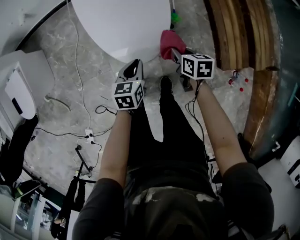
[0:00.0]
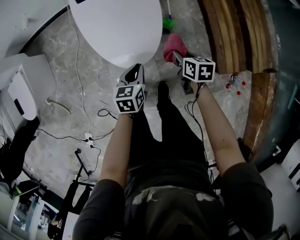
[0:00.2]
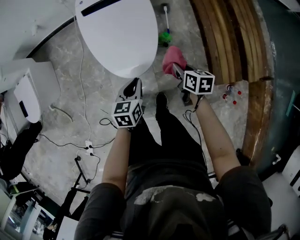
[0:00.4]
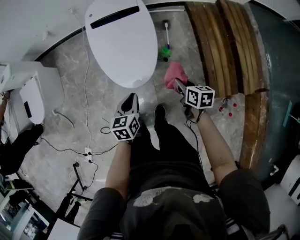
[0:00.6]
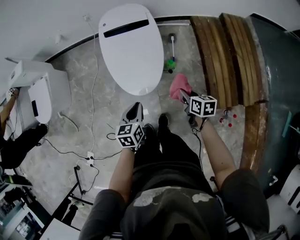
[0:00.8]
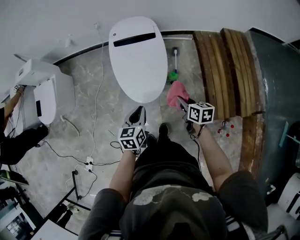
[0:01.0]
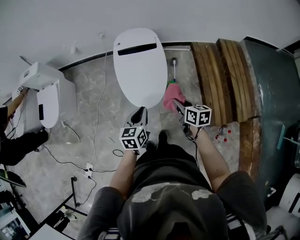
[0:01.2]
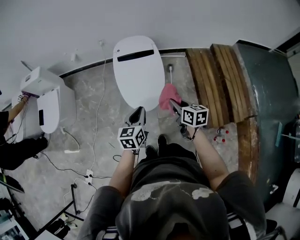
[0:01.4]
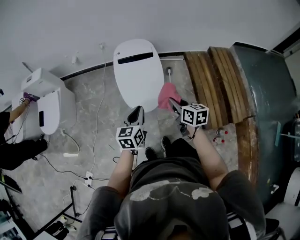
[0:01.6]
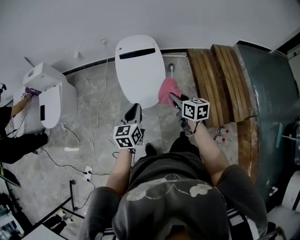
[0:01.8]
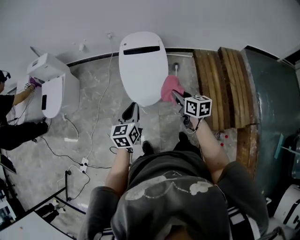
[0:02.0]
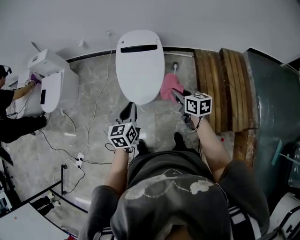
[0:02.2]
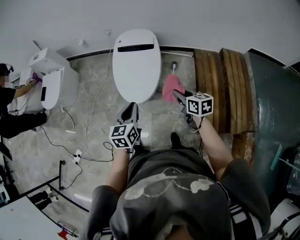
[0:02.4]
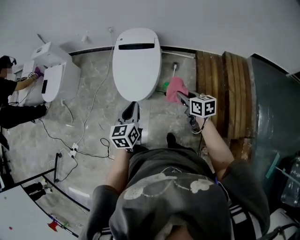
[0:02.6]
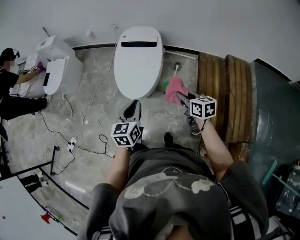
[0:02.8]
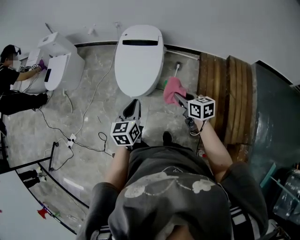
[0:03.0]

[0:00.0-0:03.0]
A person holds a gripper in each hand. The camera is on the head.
0:00.0 to 0:01.6: The grippers both shift upward by about 30 cm. The left gripper changes its angle by approximately 30 degrees. The right gripper rotates some 30 degrees.
0:01.6 to 0:03.0: The right gripper goes about 15 cm to the right, and rotates approximately 20 degrees. The left gripper travels to the right and backward by approximately 15 cm, and turns by approximately 20 degrees.

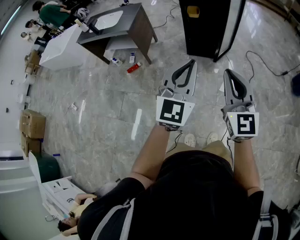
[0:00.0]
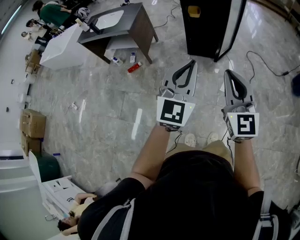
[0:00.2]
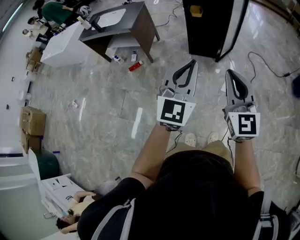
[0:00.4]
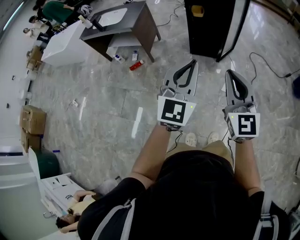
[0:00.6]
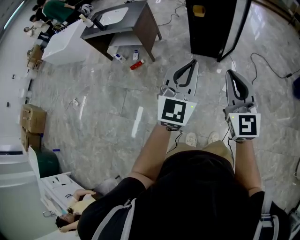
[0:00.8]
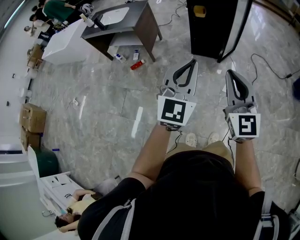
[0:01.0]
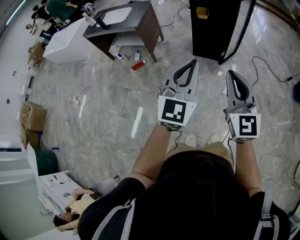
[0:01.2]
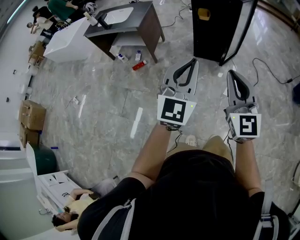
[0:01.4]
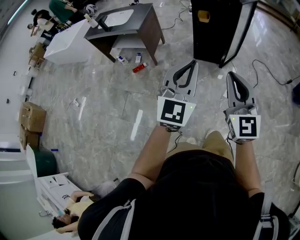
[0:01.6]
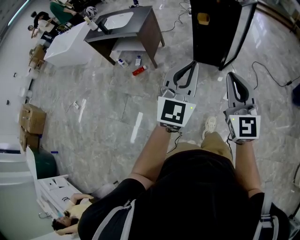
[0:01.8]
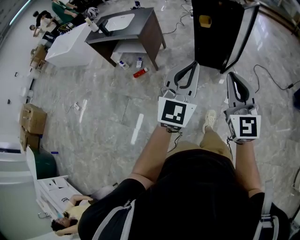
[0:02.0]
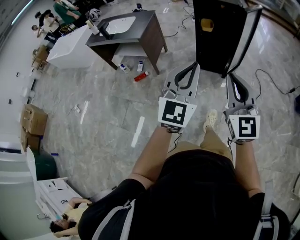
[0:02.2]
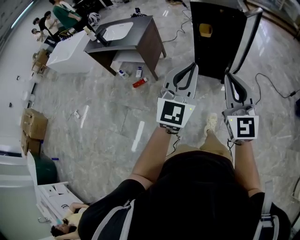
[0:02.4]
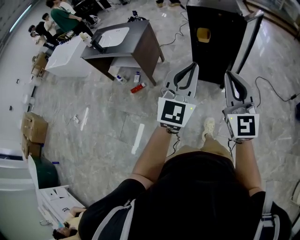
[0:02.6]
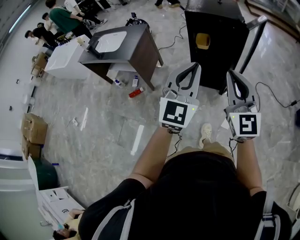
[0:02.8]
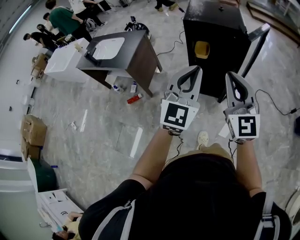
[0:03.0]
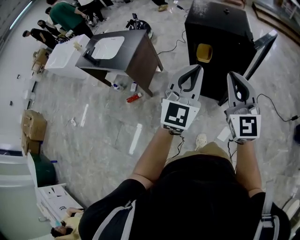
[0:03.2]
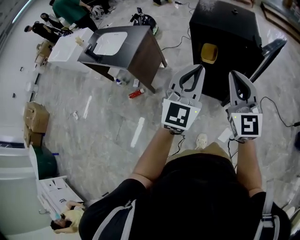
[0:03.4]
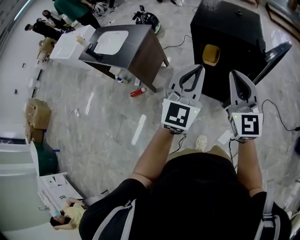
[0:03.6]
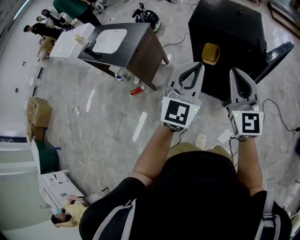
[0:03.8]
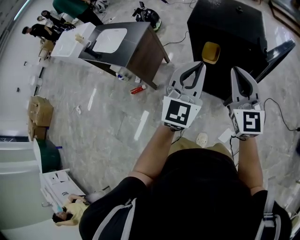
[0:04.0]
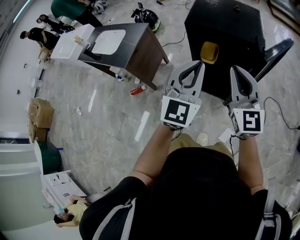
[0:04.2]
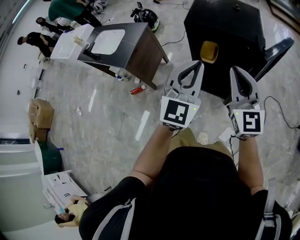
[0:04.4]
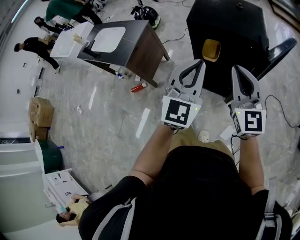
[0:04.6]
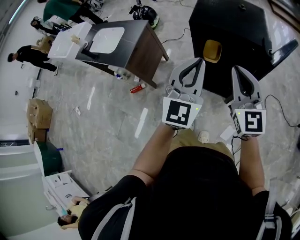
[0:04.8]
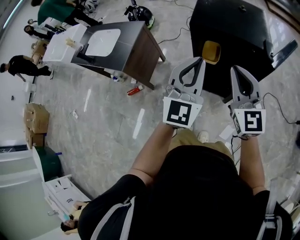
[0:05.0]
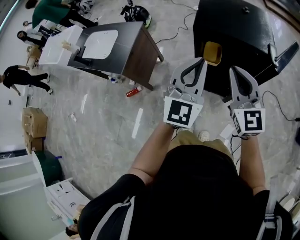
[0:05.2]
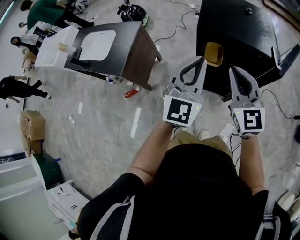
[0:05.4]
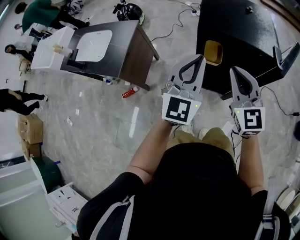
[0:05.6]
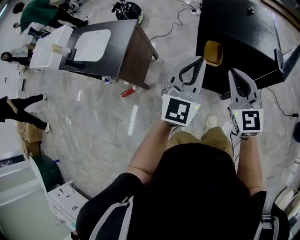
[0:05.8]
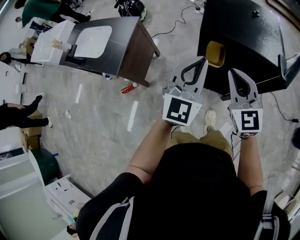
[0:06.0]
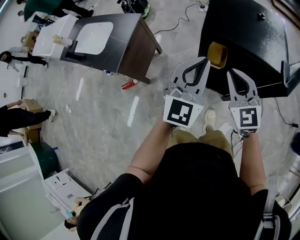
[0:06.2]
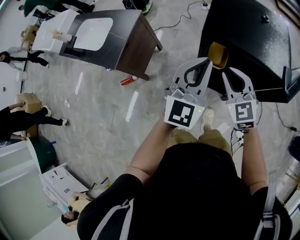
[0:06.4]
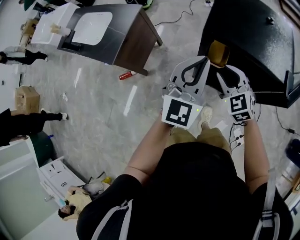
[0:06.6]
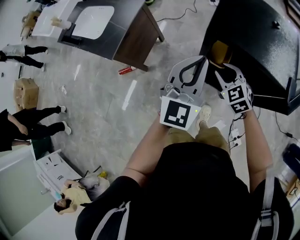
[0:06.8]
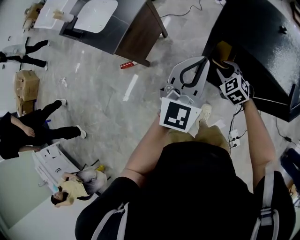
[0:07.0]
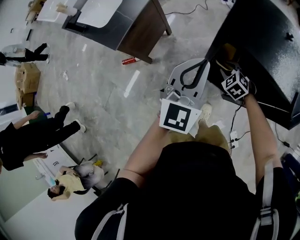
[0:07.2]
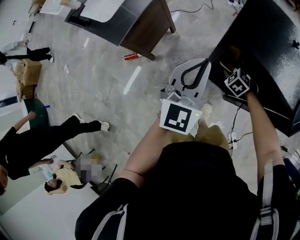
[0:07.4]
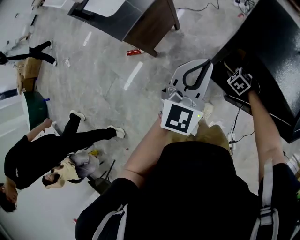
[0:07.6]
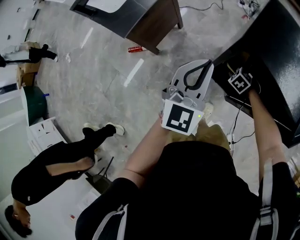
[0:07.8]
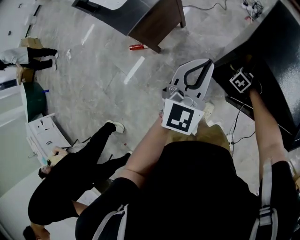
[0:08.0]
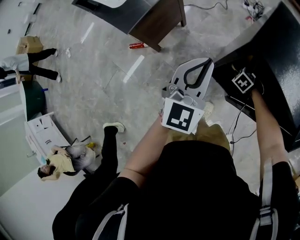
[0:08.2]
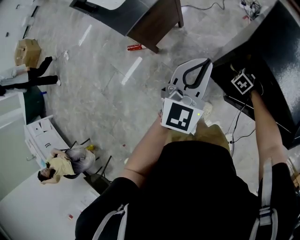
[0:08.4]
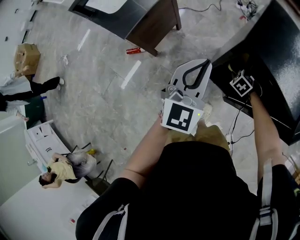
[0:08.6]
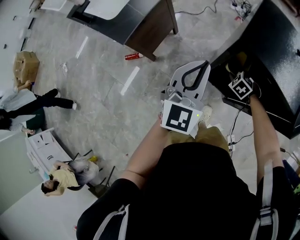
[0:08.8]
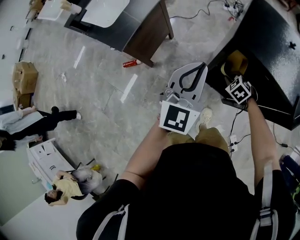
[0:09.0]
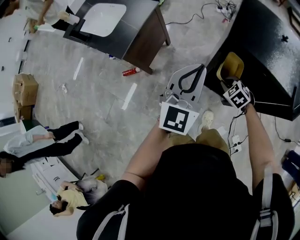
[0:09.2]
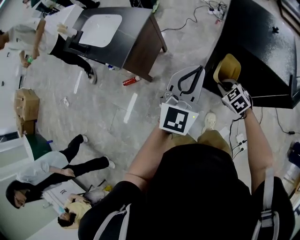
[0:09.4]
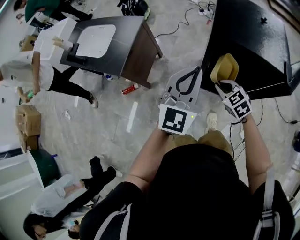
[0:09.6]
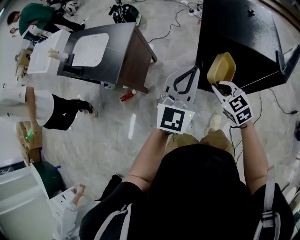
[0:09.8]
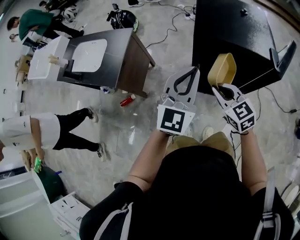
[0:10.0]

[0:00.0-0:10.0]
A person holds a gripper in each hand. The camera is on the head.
0:00.0 to 0:01.4: The grippers move only a little.
0:01.4 to 0:02.8: The two grippers go some 30 cm forward.
0:02.8 to 0:04.2: Both grippers move forward, some 30 cm.
0:04.2 to 0:05.8: The left gripper moves forward and to the left, roughly 20 cm. Meanwhile the right gripper moves to the left, forward and downward, approximately 15 cm.
0:05.8 to 0:07.2: The right gripper moves downward and forward, roughly 35 cm, tips its fingers downward by approximately 50 degrees, and opens up. The left gripper is displaced forward and downward by some 10 cm.
0:07.2 to 0:08.6: The right gripper is displaced downward by about 10 cm, and closes up. The left gripper shifts by approximately 5 cm.
0:08.6 to 0:10.0: The right gripper travels upward by approximately 25 cm, and tilts its fingers about 50 degrees upward. The left gripper moves about 15 cm, and turns by some 30 degrees.

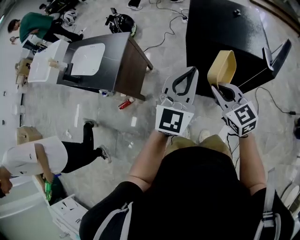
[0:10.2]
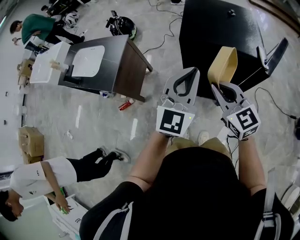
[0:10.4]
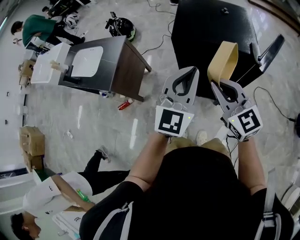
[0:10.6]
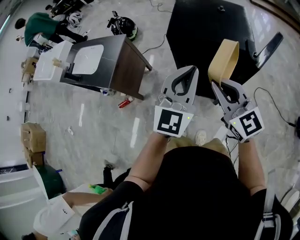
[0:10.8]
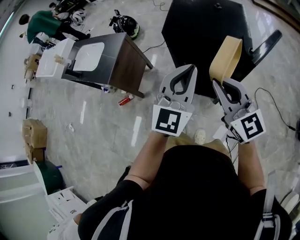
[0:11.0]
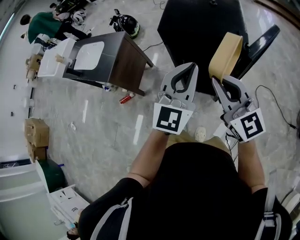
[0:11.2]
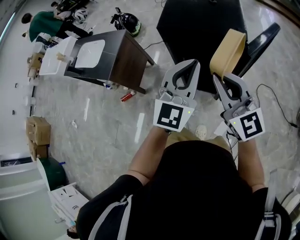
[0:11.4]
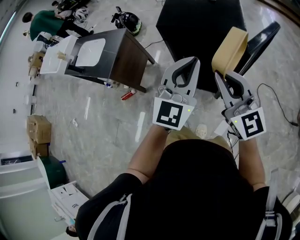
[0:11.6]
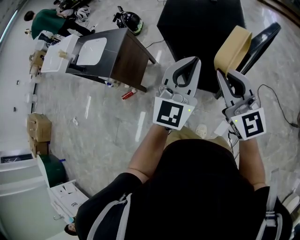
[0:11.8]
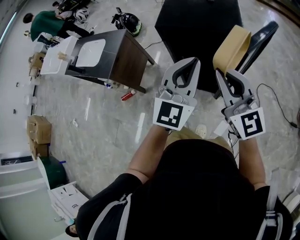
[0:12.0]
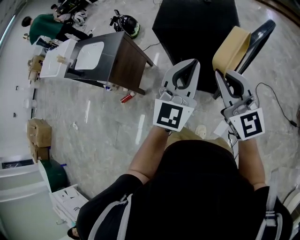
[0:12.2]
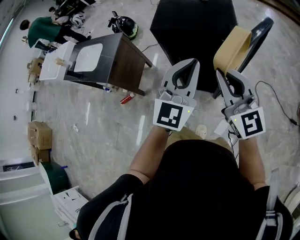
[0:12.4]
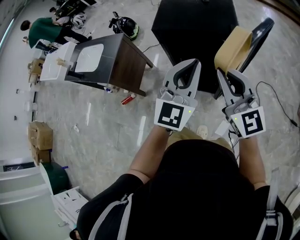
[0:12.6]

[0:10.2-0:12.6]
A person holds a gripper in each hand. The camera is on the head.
0:10.2 to 0:11.4: The right gripper moves to the right, upward and backward, about 20 cm, and turns by approximately 20 degrees. The left gripper moves to the right and backward, some 20 cm.
0:11.4 to 0:12.6: The grippers make only small movements.

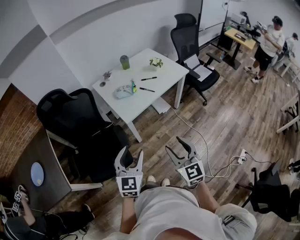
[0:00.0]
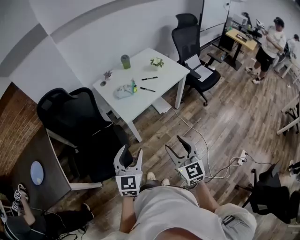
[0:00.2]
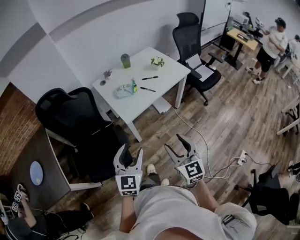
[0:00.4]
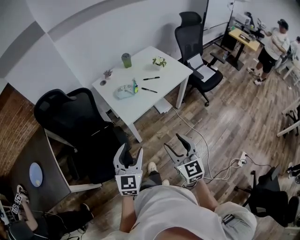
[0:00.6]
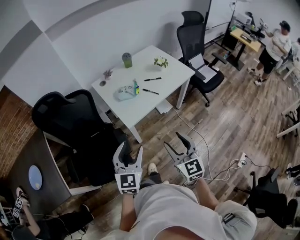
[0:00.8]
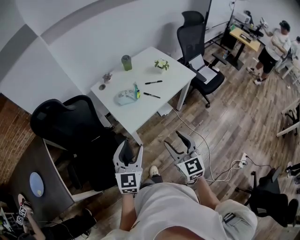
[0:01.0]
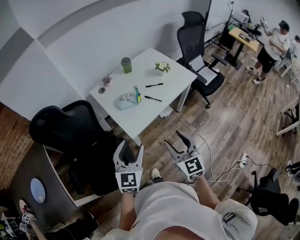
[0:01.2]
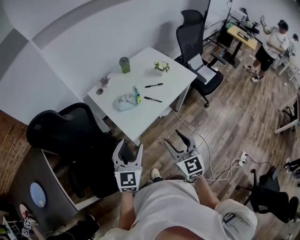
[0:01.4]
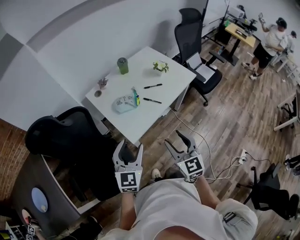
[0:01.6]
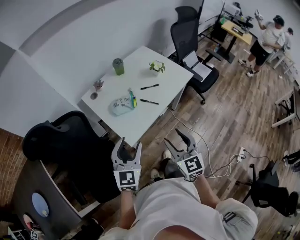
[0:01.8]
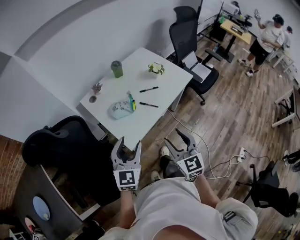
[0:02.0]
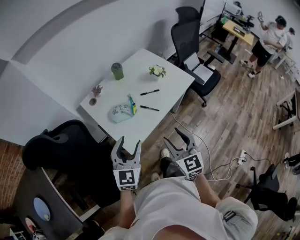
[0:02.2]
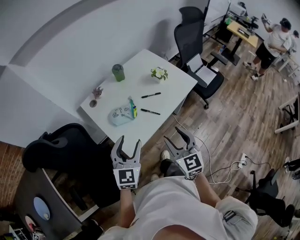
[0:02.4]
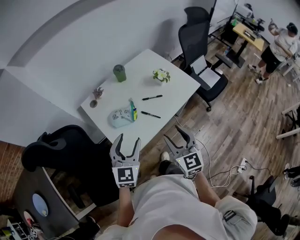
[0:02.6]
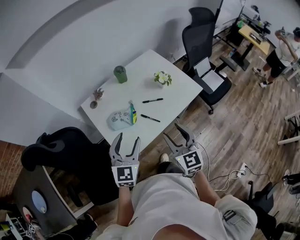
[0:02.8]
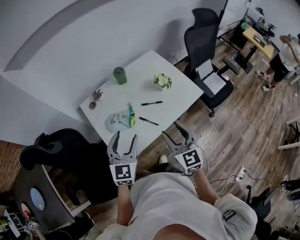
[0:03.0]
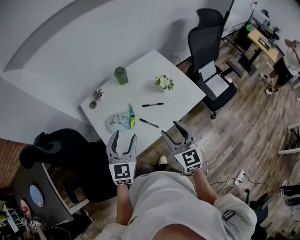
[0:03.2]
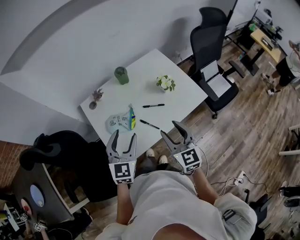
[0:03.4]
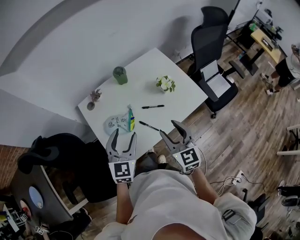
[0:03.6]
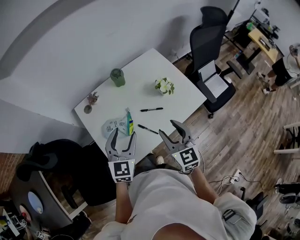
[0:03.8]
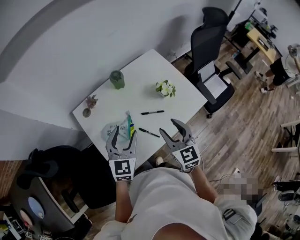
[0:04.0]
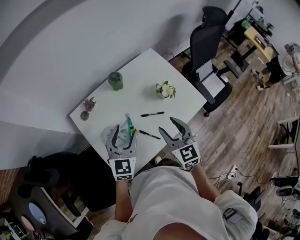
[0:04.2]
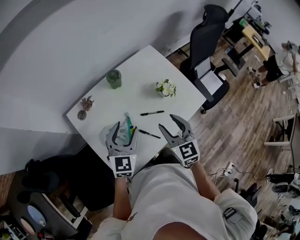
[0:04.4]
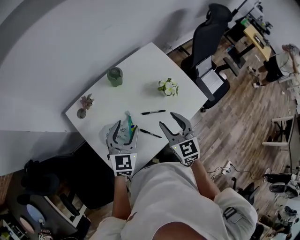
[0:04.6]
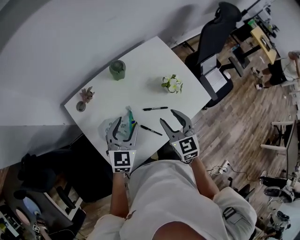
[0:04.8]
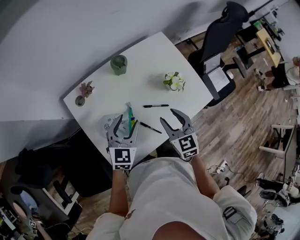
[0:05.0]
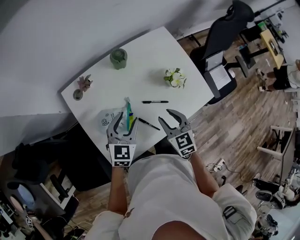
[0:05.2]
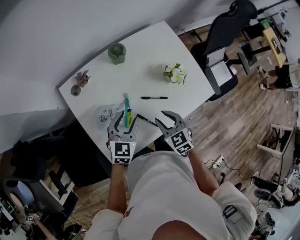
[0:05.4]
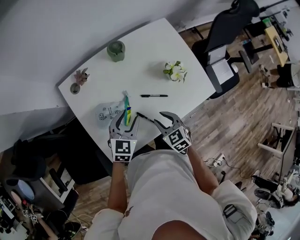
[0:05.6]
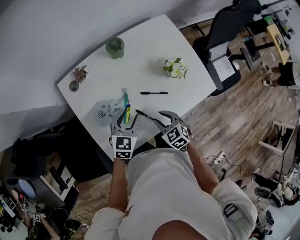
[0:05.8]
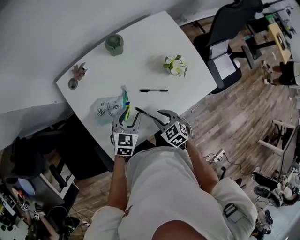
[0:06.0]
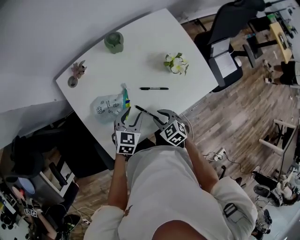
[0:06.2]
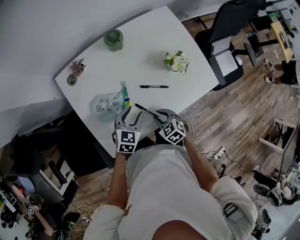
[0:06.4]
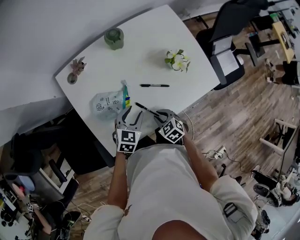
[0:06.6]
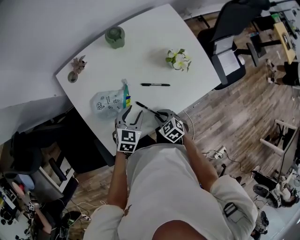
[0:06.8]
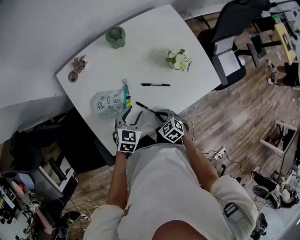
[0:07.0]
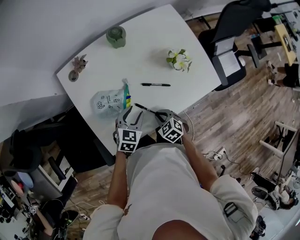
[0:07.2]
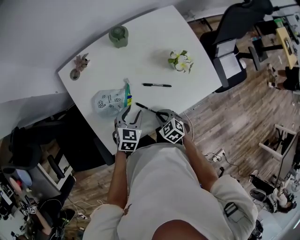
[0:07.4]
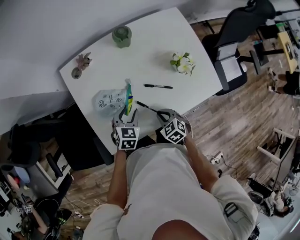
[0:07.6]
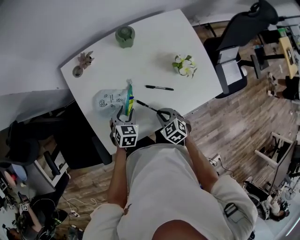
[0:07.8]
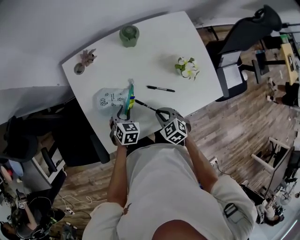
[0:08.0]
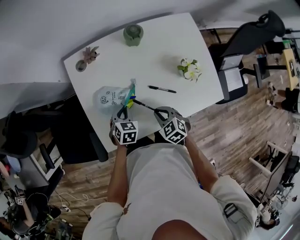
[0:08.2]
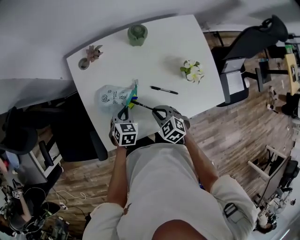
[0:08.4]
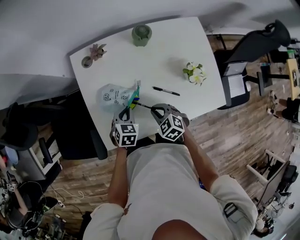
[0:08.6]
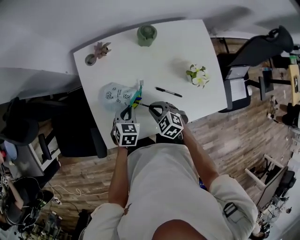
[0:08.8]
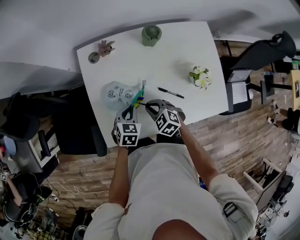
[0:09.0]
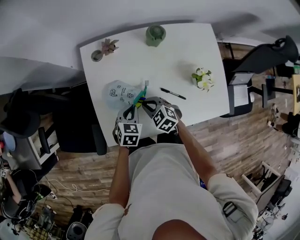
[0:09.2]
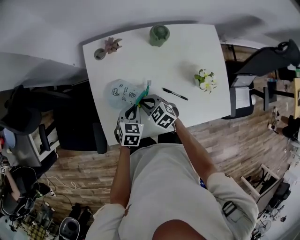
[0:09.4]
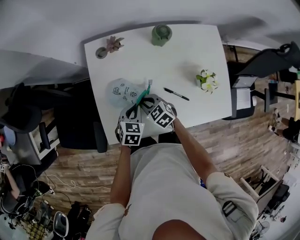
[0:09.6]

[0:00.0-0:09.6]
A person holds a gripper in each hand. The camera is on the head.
0:00.0 to 0:01.6: The two grippers go approximately 25 cm forward.
0:01.6 to 0:03.2: Both grippers move forward, about 25 cm.
0:03.2 to 0:04.8: Both grippers travel together forward and downward, approximately 20 cm.
0:04.8 to 0:06.4: The left gripper goes about 15 cm downward, and rotates about 20 degrees. Meanwhile the right gripper moves downward and backward, some 25 cm, tips its fingers downward by approximately 30 degrees, and closes its fingers.
0:06.4 to 0:08.0: The left gripper heads to the left and downward, covering some 10 cm, and turns by some 30 degrees.
0:08.0 to 0:09.6: The left gripper closes, while the right gripper shifts roughly 15 cm to the left and forward, and swivels roughly 20 degrees.
